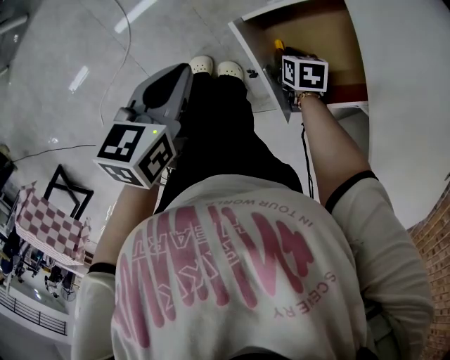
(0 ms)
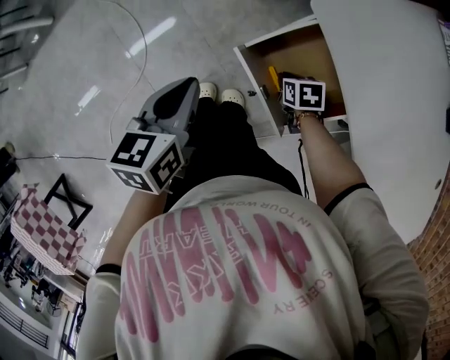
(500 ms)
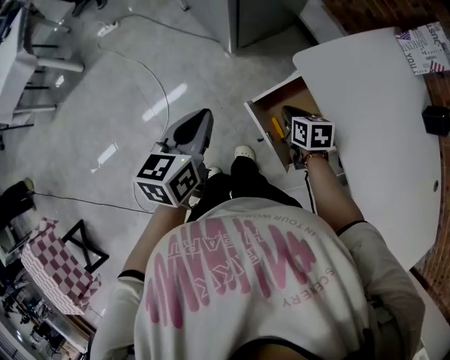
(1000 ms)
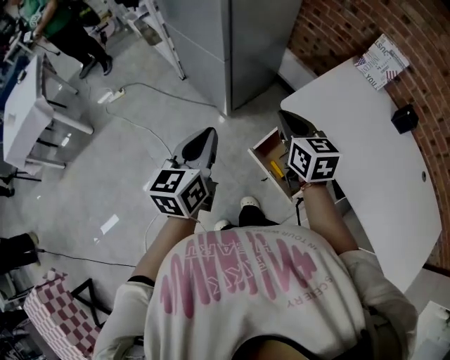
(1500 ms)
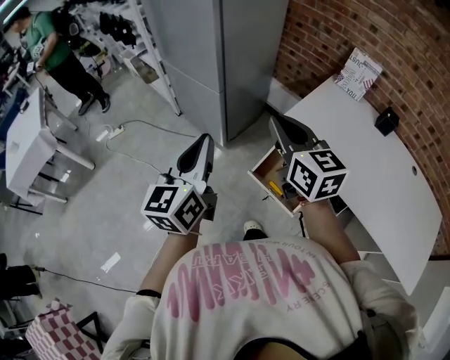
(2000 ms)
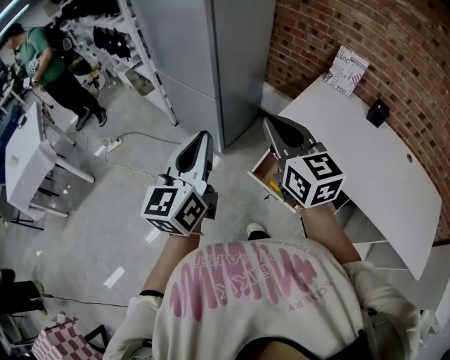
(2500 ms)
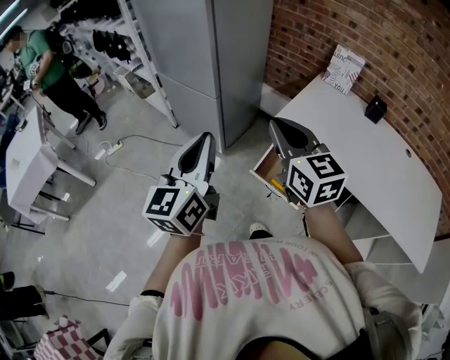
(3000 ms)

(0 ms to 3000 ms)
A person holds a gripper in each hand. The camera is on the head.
0 ms - 1500 ms: The right gripper heads upward, covering approximately 50 cm, tilts its fingers some 50 degrees upward, and closes, while the left gripper moves upward, roughly 30 cm, and changes its angle by approximately 30 degrees.
1500 ms - 3000 ms: The two grippers go roughly 20 cm upward and backward. The left gripper changes its angle by approximately 20 degrees; the right gripper rotates about 20 degrees.

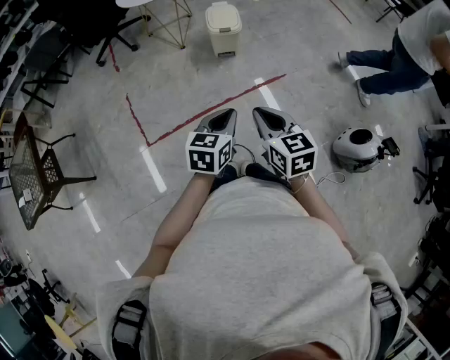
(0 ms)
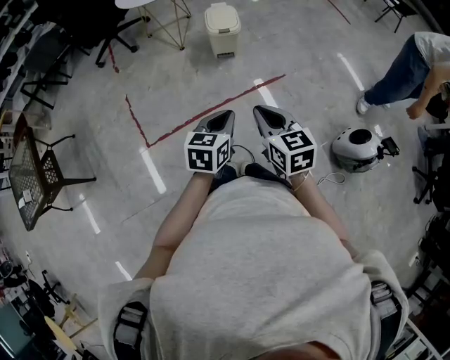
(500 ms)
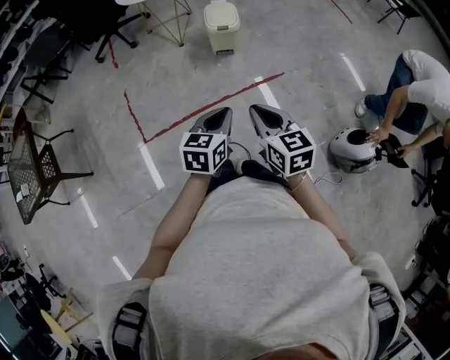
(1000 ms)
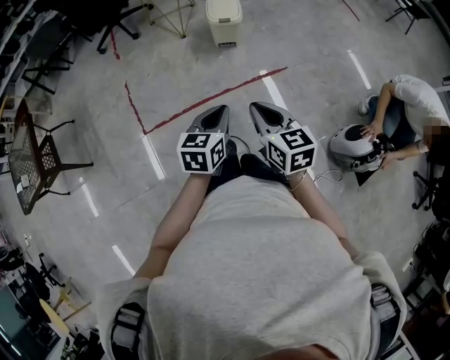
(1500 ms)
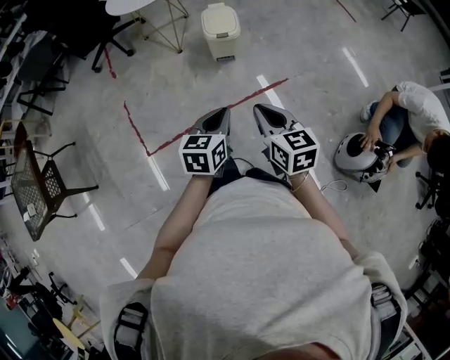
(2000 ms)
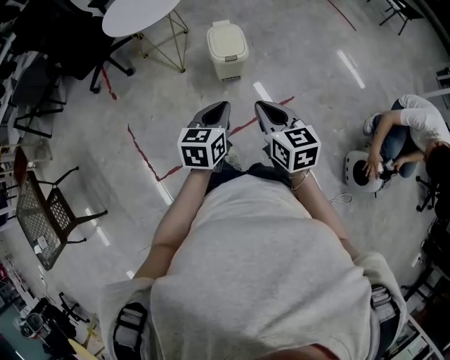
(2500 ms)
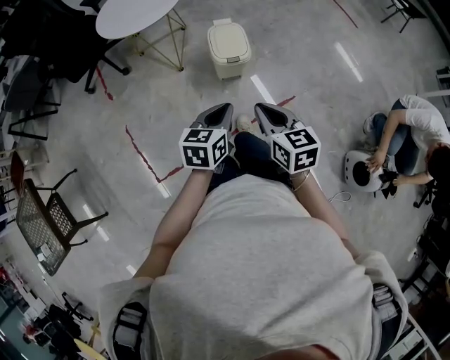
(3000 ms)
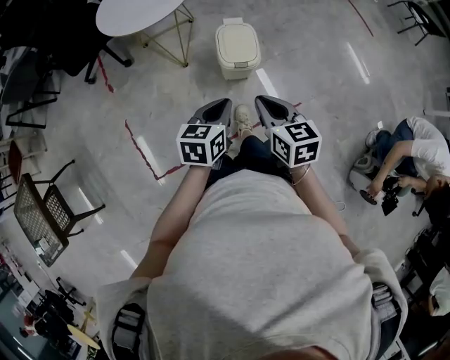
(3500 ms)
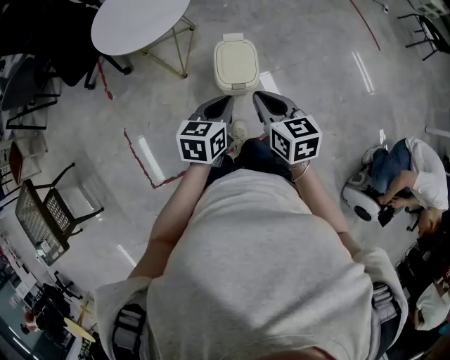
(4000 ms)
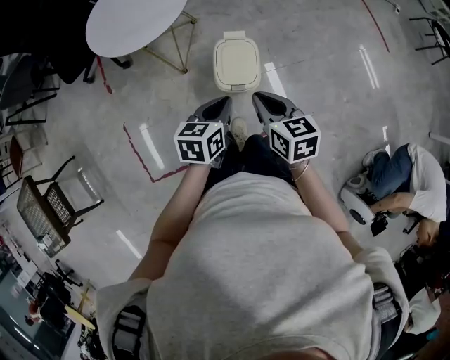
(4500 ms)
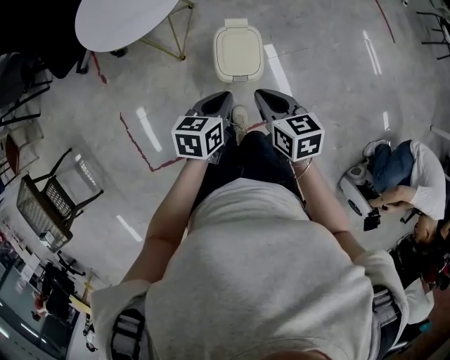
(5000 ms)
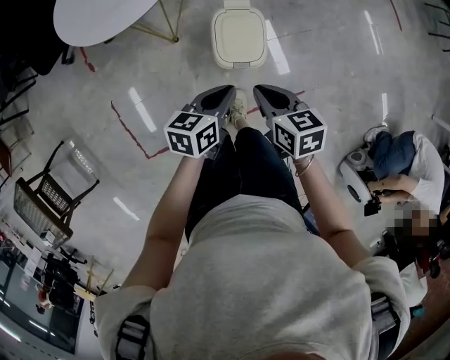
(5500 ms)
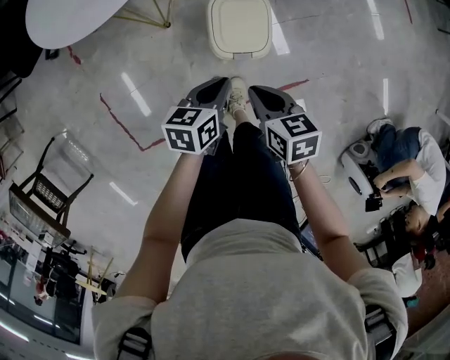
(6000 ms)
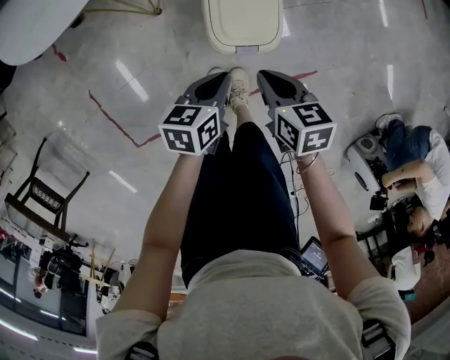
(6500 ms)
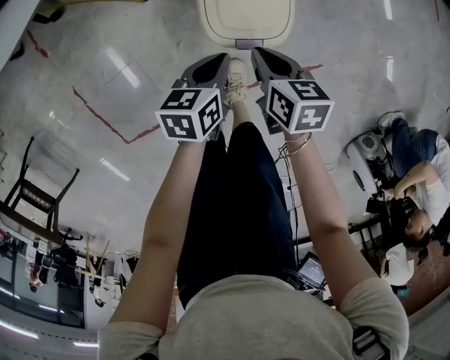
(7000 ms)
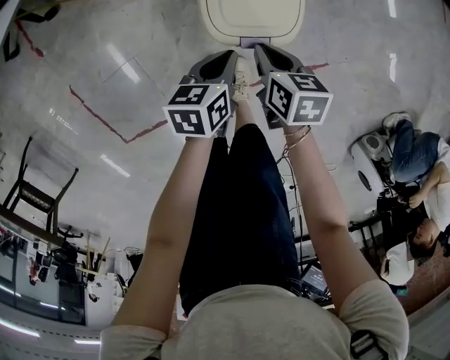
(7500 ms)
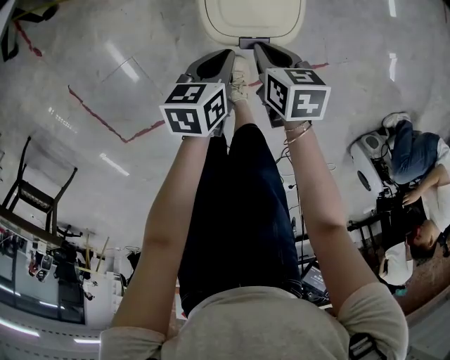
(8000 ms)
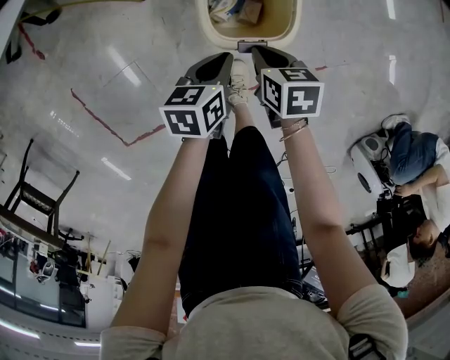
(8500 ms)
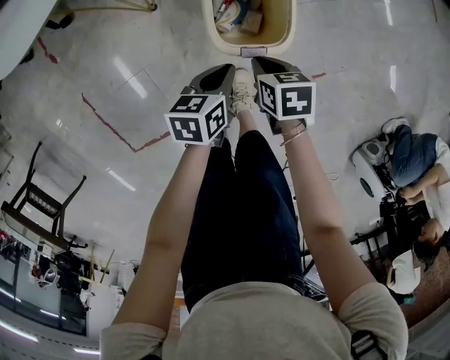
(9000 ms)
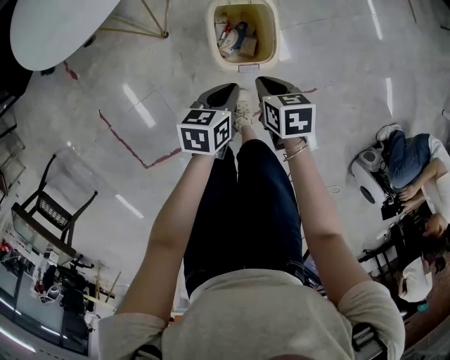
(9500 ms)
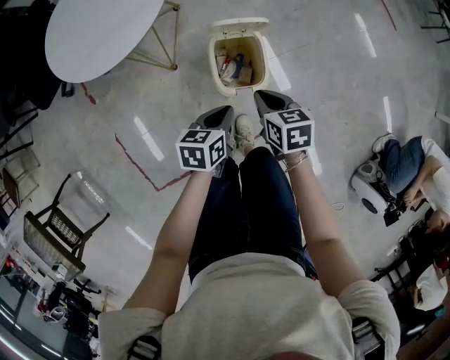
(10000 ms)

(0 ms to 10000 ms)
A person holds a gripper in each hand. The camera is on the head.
0 ms - 2000 ms: Both grippers move forward, roughly 10 cm.
2000 ms - 4000 ms: The two grippers travel together, forward, some 50 cm.
4000 ms - 6000 ms: The right gripper goes about 20 cm downward, and changes its angle by some 20 degrees; the left gripper heads downward and forward, covering roughly 20 cm, and swivels roughly 20 degrees.
6000 ms - 8000 ms: The grippers both shift downward by about 25 cm.
8000 ms - 10000 ms: Both grippers travel together upward, some 25 cm.

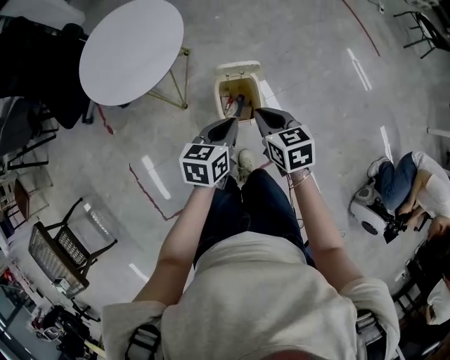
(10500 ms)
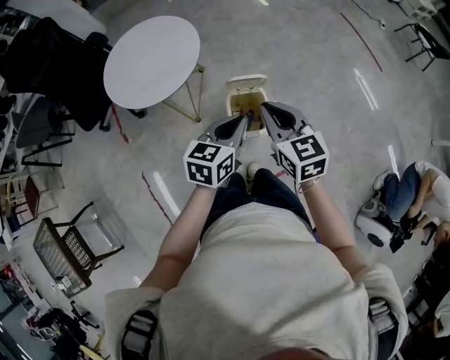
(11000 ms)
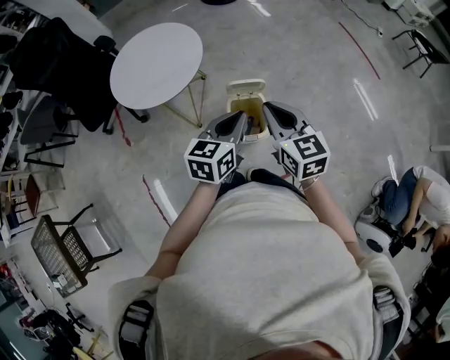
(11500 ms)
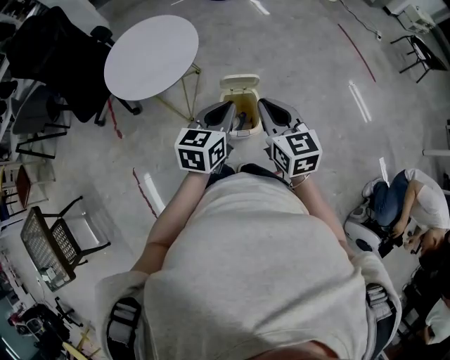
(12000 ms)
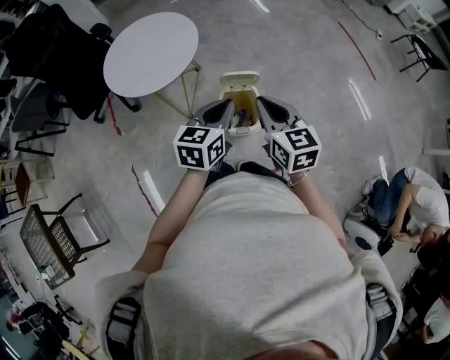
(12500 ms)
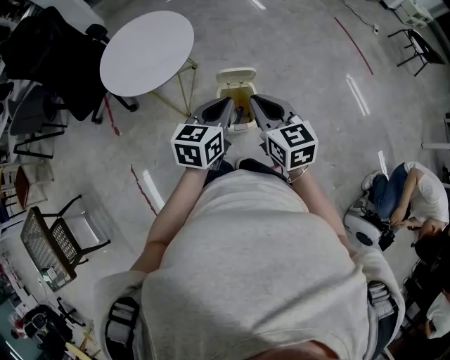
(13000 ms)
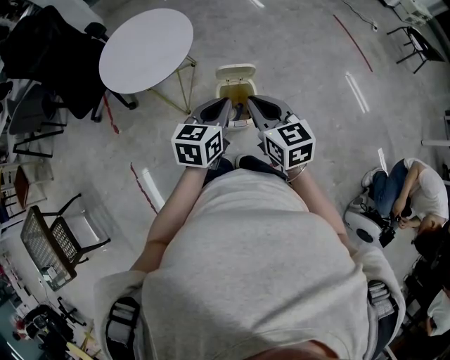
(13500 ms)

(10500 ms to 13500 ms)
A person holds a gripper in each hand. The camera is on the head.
10500 ms - 12000 ms: The two grippers go roughly 15 cm upward. The right gripper swivels approximately 20 degrees.
12000 ms - 13500 ms: The grippers stay close to where they were, moving slightly.

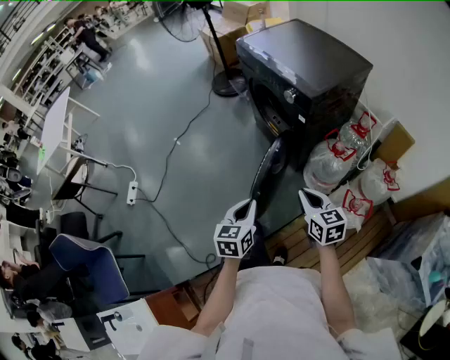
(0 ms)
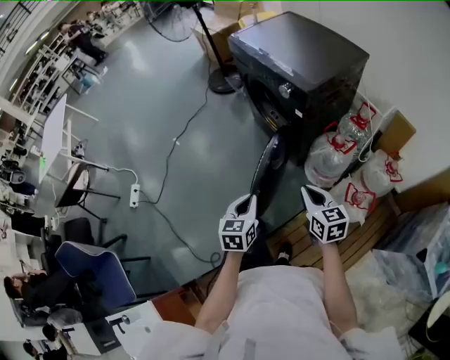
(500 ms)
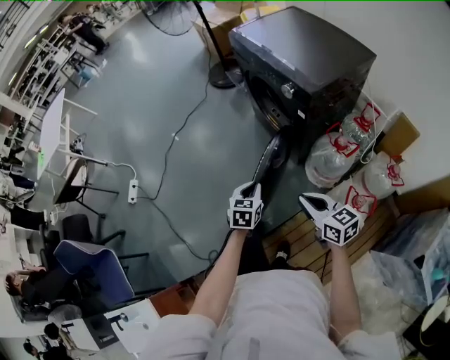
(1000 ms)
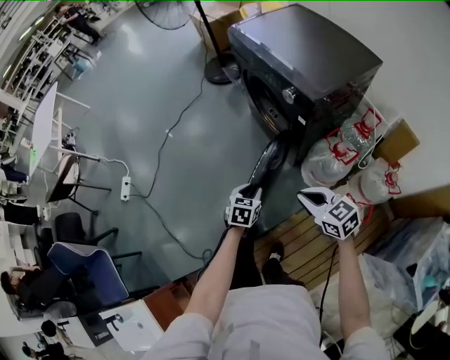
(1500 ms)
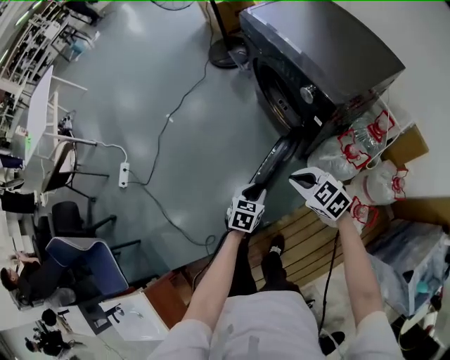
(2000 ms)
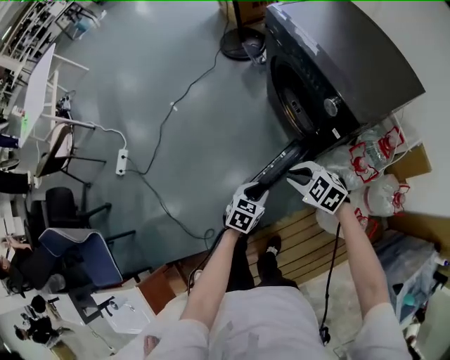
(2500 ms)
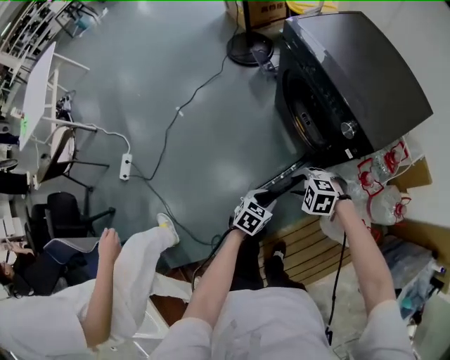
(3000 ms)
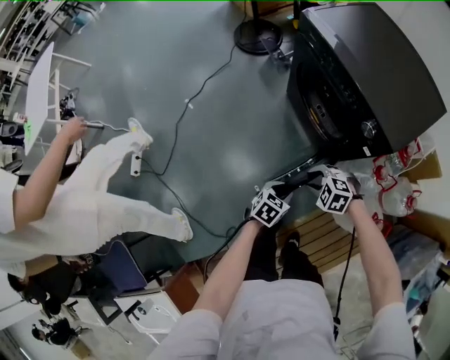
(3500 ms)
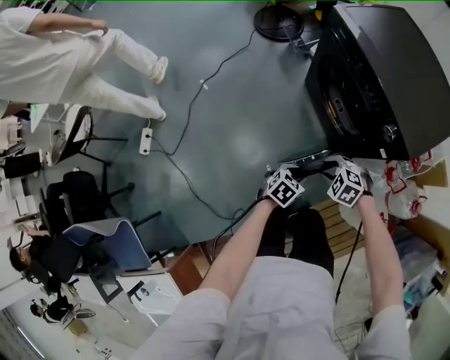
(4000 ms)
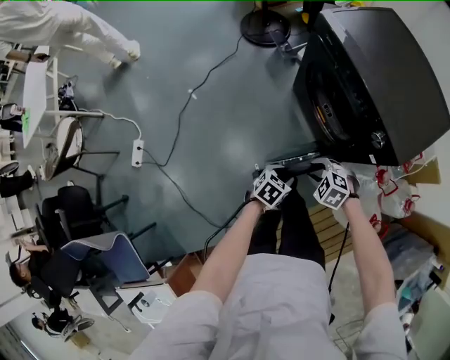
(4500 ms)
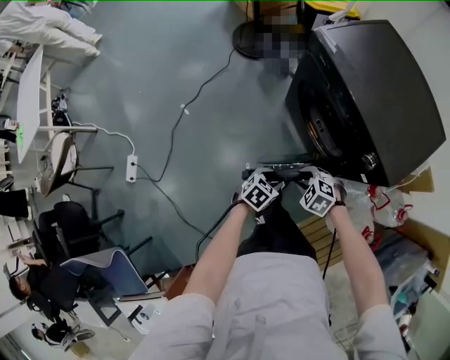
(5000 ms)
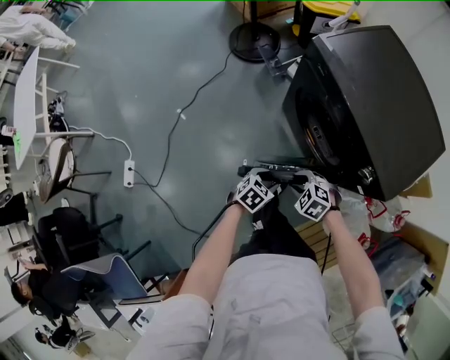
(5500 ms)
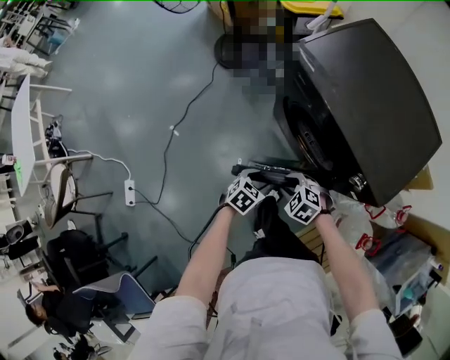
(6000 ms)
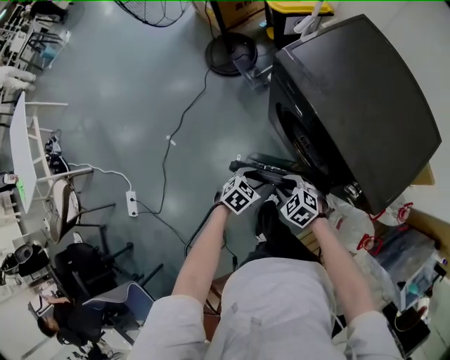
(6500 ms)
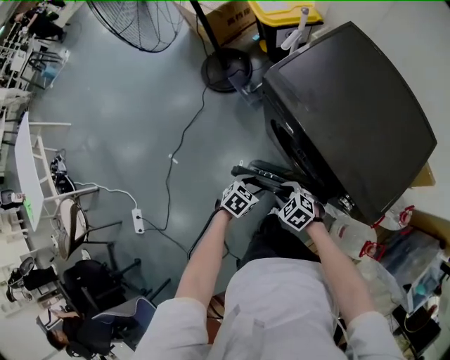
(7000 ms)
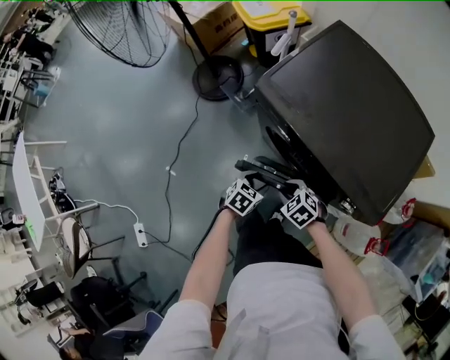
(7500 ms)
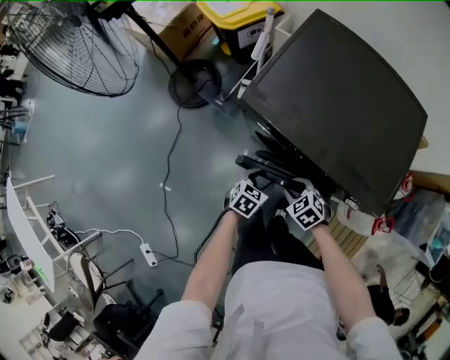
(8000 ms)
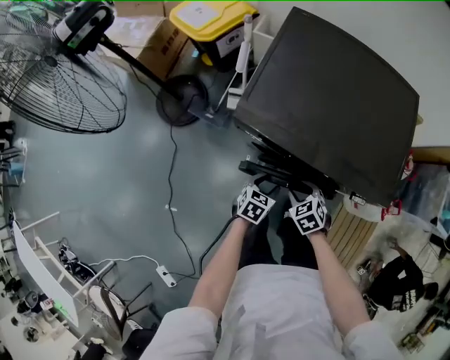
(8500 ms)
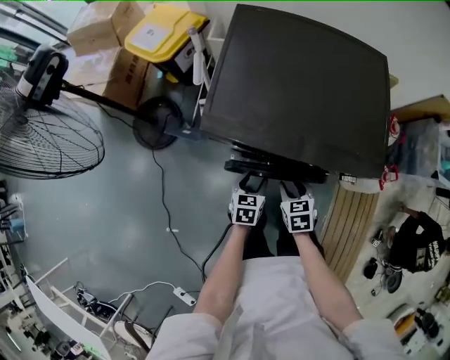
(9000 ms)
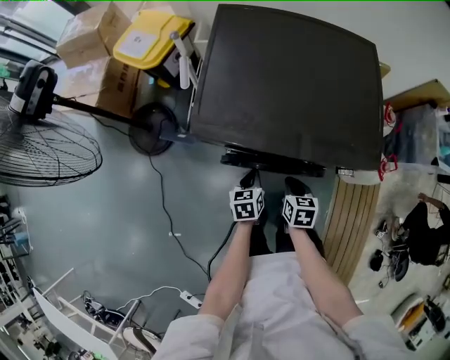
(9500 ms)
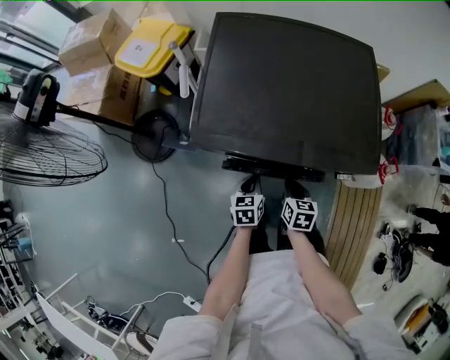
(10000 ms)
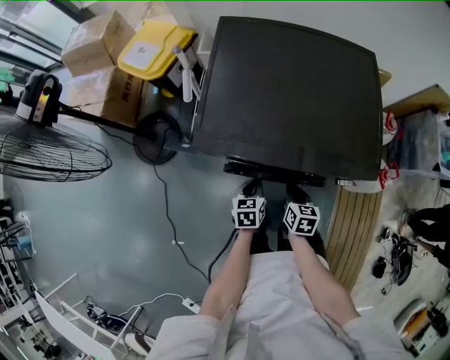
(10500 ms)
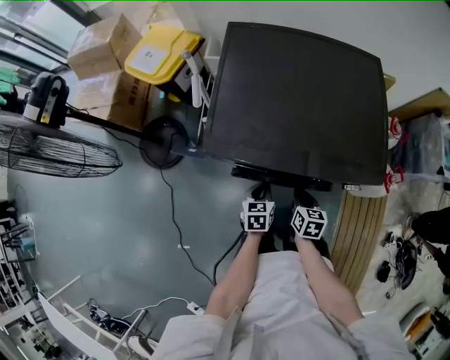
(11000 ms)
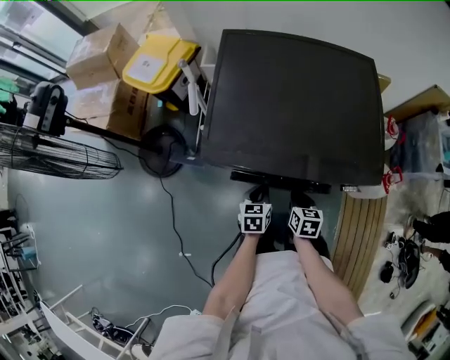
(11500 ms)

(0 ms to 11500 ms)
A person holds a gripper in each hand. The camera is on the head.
0 ms - 2000 ms: The left gripper goes roughly 20 cm downward and forward, swivels about 20 degrees, and opens up, while the right gripper heads forward, covering some 15 cm, and swivels roughly 40 degrees.
2000 ms - 4000 ms: The left gripper changes place by about 15 cm, and changes its angle by about 20 degrees. The right gripper ends up roughly 20 cm from where it was, turns by roughly 30 degrees, and opens.
4000 ms - 6000 ms: The right gripper changes place by roughly 15 cm. Meanwhile the left gripper moves approximately 20 cm.
6000 ms - 7500 ms: The left gripper moves about 15 cm, while the right gripper changes place by roughly 15 cm, and turns by approximately 20 degrees.
7500 ms - 9500 ms: The right gripper moves some 10 cm, rotates around the line of its fingers by about 70 degrees, clockwise from behind, and closes up. The left gripper ends up approximately 10 cm from where it was, and closes up.
9500 ms - 11500 ms: The grippers stay close to where they were, moving slightly.
